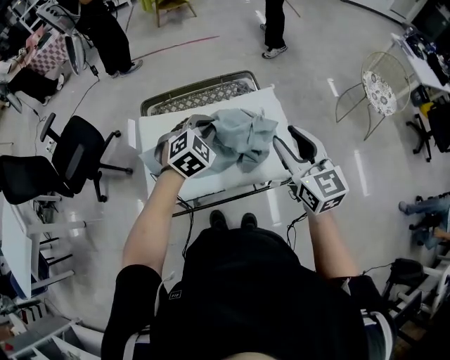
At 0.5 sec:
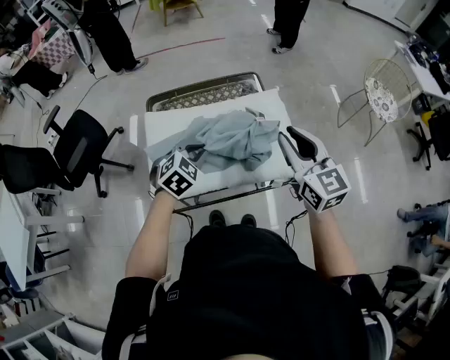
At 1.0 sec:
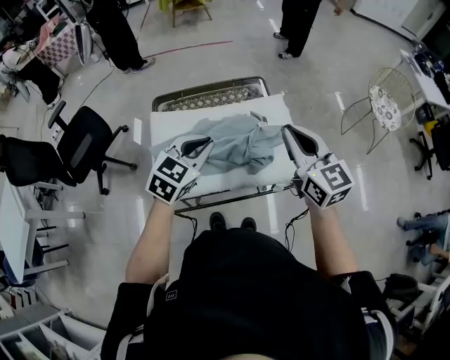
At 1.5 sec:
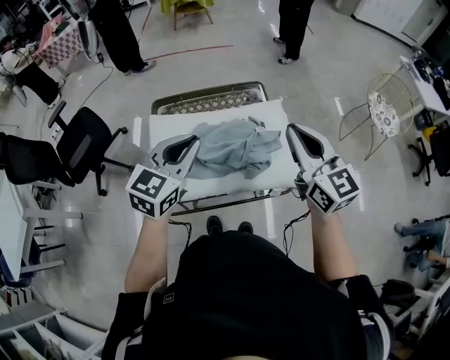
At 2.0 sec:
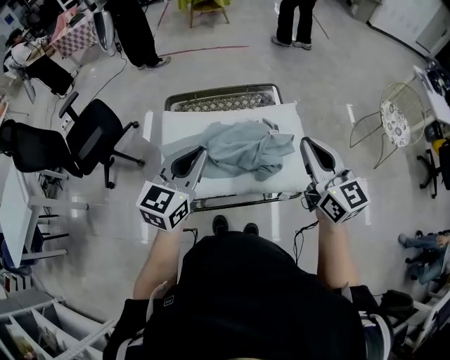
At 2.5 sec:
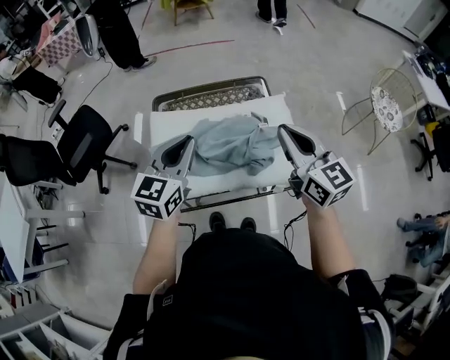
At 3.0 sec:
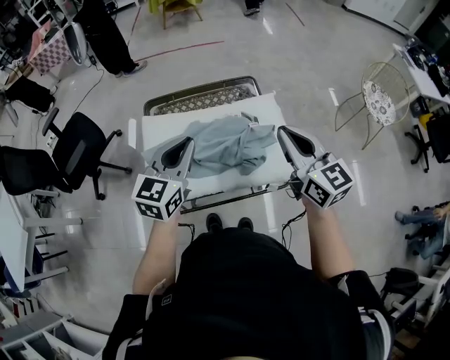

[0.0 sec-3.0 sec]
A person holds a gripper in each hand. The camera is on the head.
0.0 sec to 1.5 sec: The left gripper travels upward, backward and to the left by roughly 15 cm, and swivels about 40 degrees; the right gripper shifts roughly 5 cm upward, and closes up.
1.5 sec to 3.0 sec: The grippers make only small movements.

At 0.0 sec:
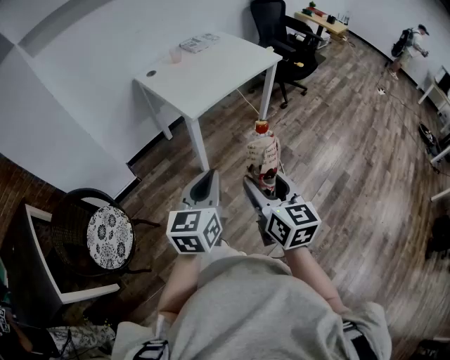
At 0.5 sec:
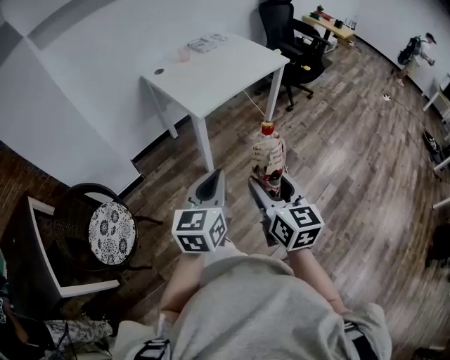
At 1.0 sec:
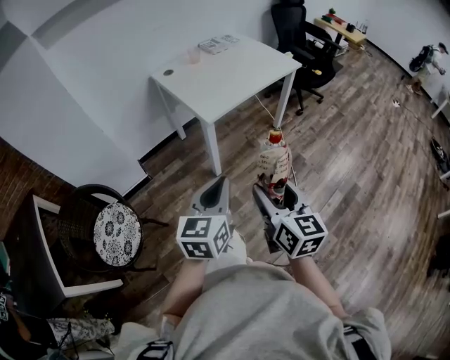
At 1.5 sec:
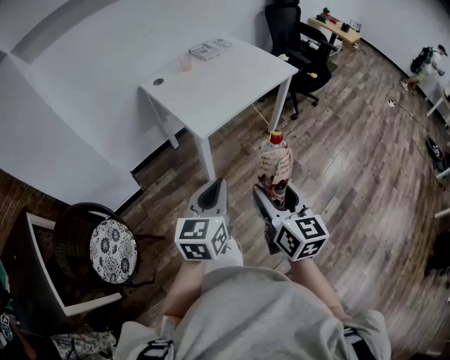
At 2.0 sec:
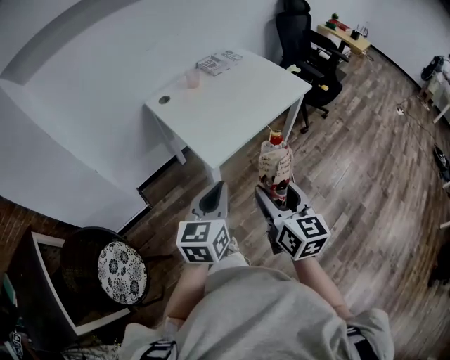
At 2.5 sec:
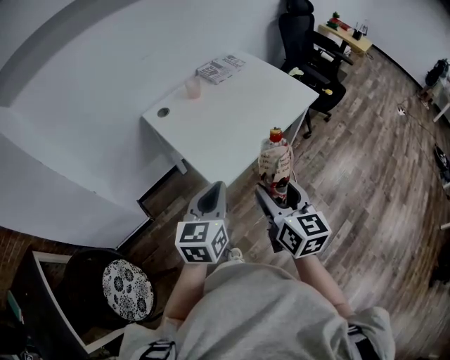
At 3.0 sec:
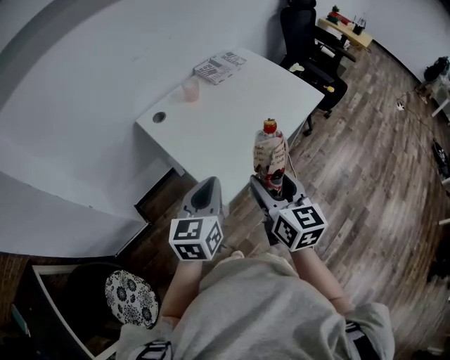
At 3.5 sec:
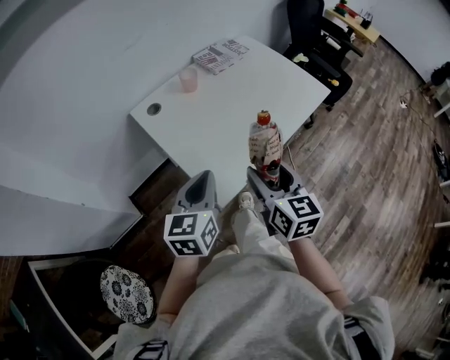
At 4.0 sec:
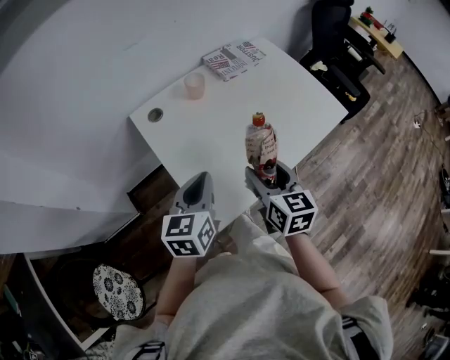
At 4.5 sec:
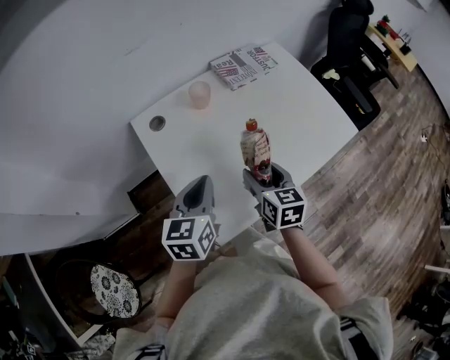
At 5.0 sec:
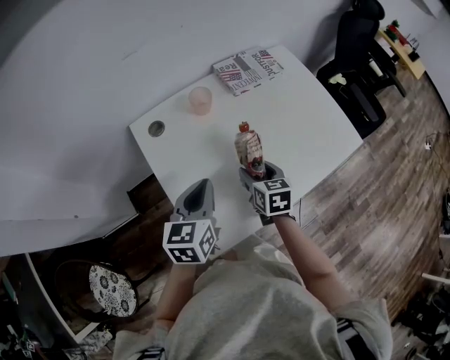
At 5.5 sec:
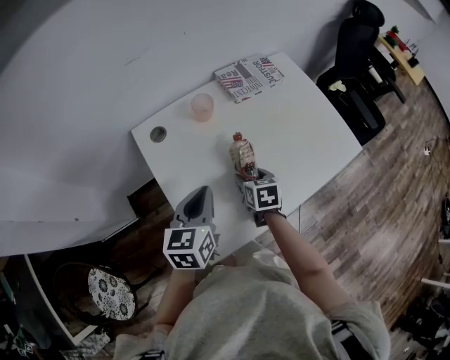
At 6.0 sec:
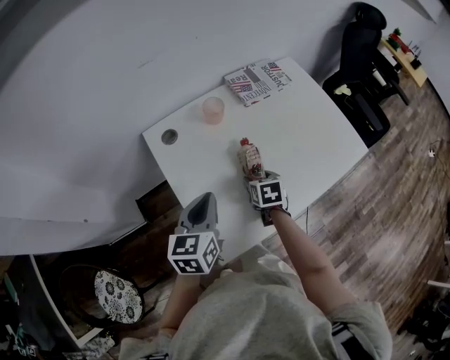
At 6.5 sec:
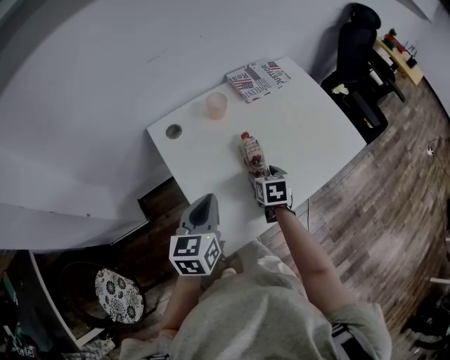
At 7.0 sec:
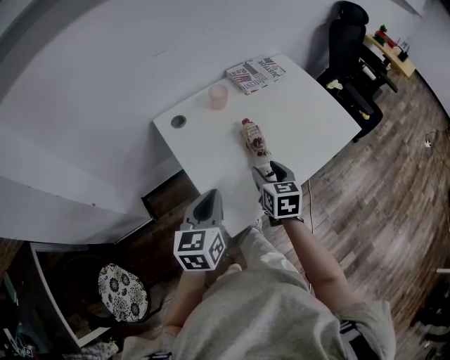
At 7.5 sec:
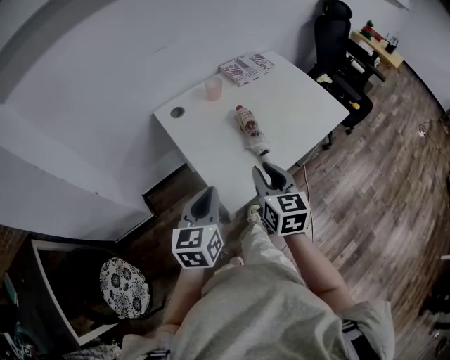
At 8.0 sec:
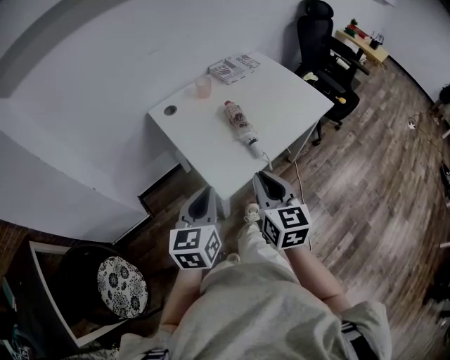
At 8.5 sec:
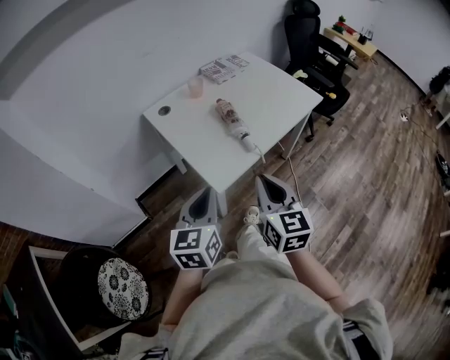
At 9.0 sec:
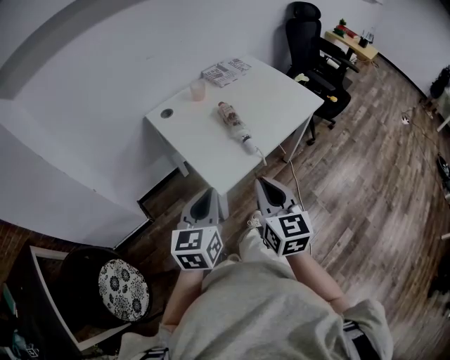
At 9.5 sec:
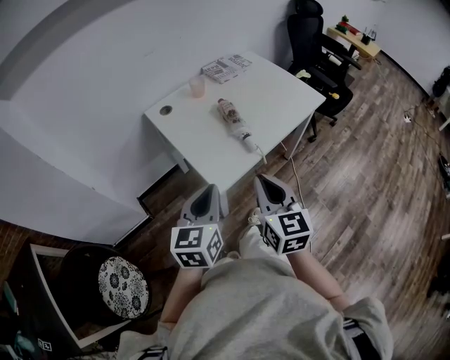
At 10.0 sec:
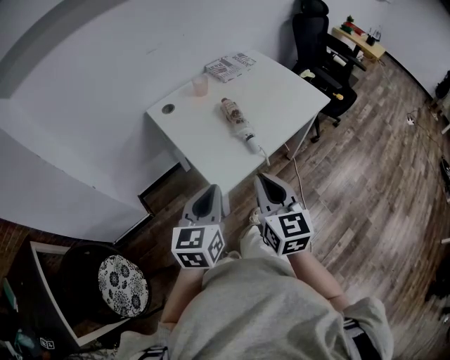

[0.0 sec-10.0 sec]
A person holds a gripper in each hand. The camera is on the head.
0.0 sec to 2.0 sec: Both grippers travel together forward, about 25 cm.
2.0 sec to 4.0 sec: Both grippers travel together forward, some 35 cm.
4.0 sec to 6.0 sec: The left gripper travels forward by roughly 10 cm. Meanwhile the right gripper heads downward and forward, covering roughly 25 cm, and tips its fingers downward by about 30 degrees.
6.0 sec to 8.0 sec: The right gripper heads backward and upward, covering some 40 cm, angles its fingers upward, by roughly 40 degrees, and closes up, while the left gripper travels backward by about 25 cm.
8.0 sec to 10.0 sec: There are only small adjustments of the grippers.

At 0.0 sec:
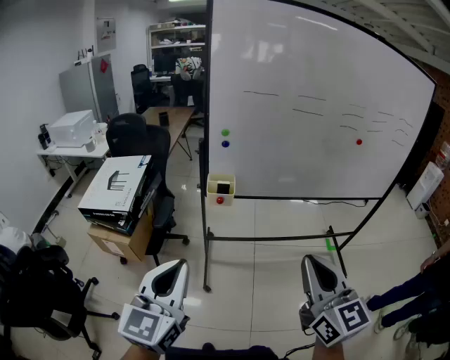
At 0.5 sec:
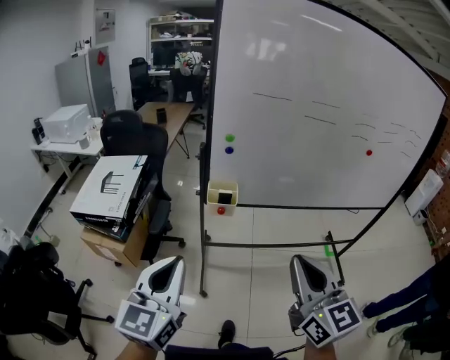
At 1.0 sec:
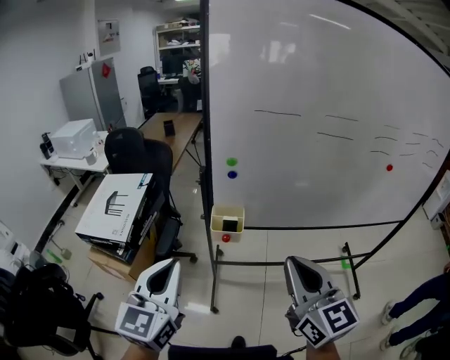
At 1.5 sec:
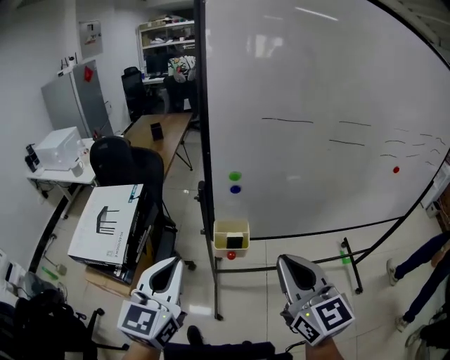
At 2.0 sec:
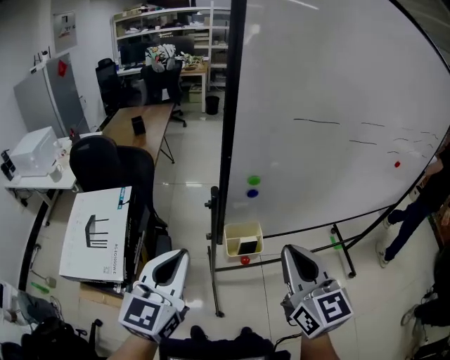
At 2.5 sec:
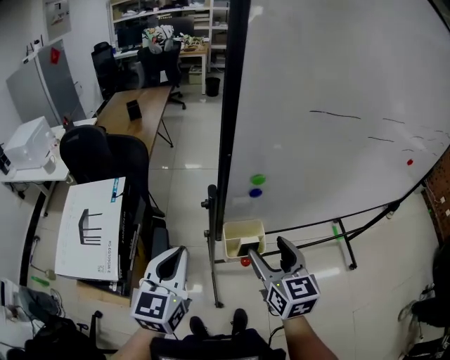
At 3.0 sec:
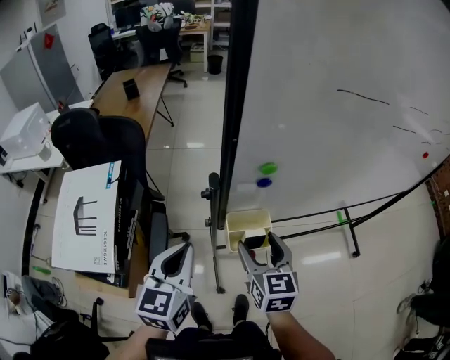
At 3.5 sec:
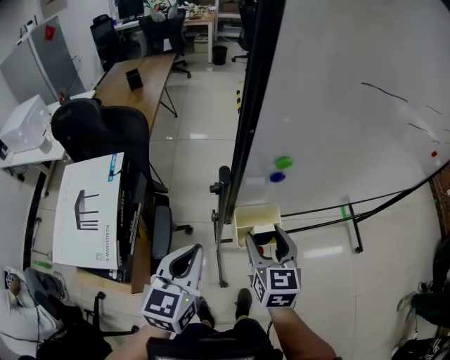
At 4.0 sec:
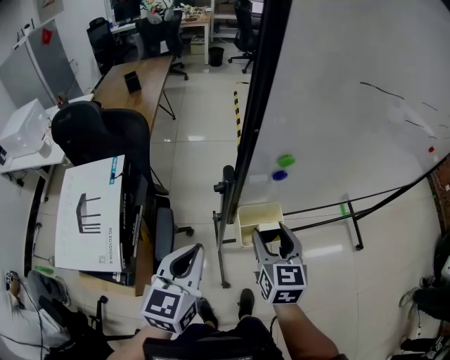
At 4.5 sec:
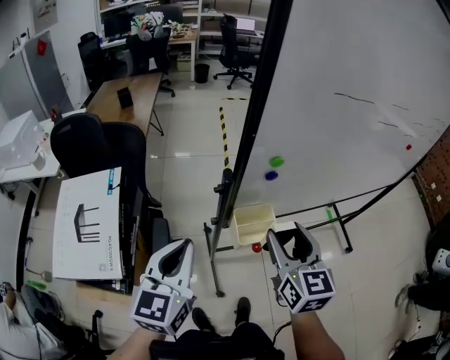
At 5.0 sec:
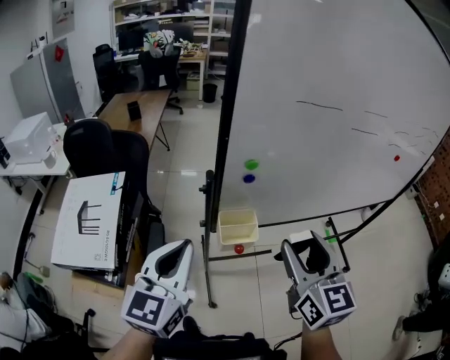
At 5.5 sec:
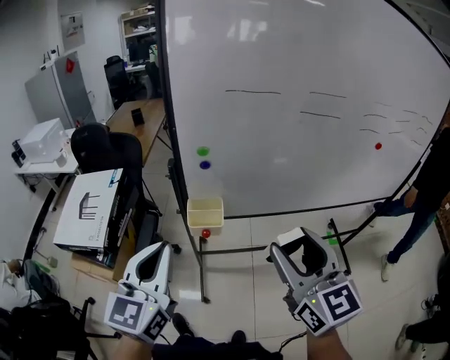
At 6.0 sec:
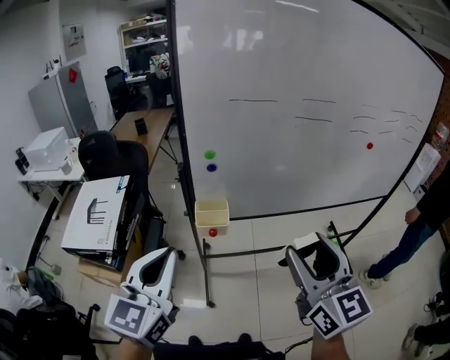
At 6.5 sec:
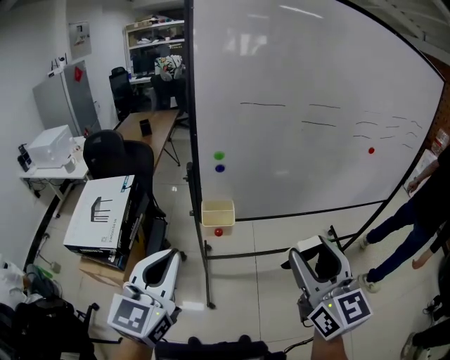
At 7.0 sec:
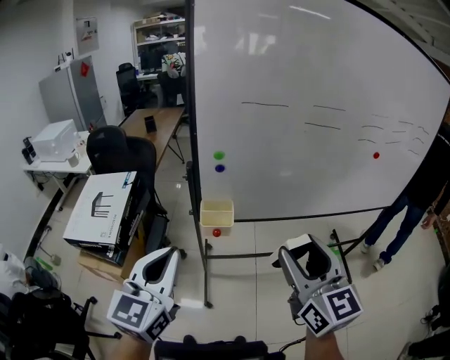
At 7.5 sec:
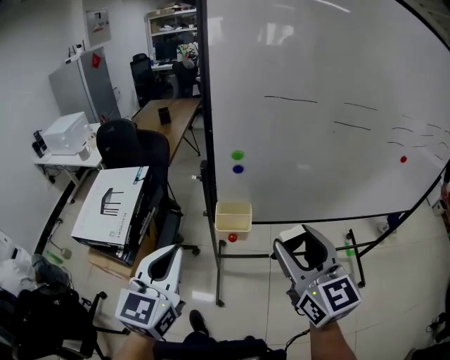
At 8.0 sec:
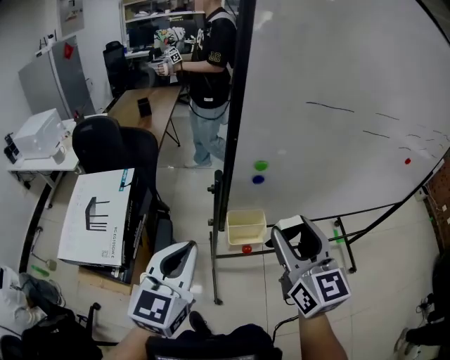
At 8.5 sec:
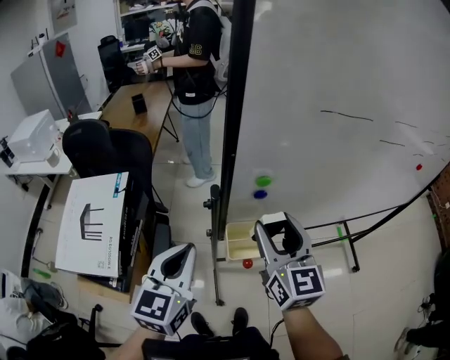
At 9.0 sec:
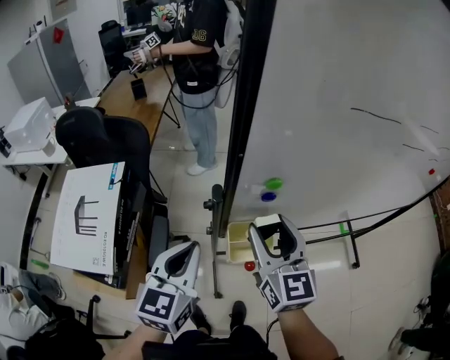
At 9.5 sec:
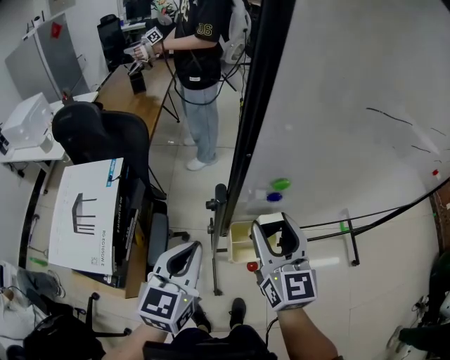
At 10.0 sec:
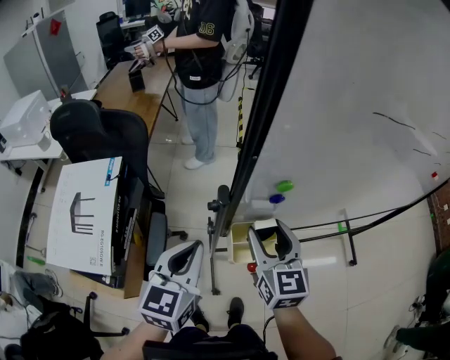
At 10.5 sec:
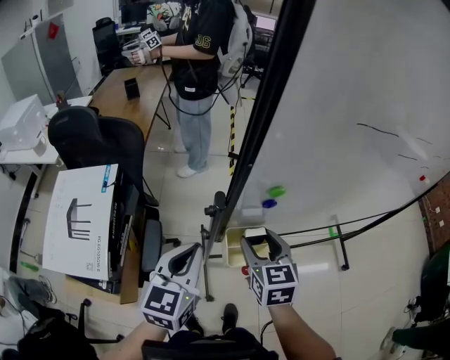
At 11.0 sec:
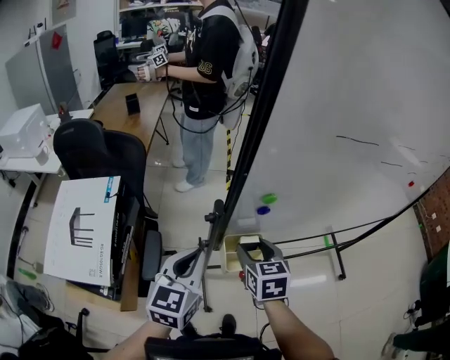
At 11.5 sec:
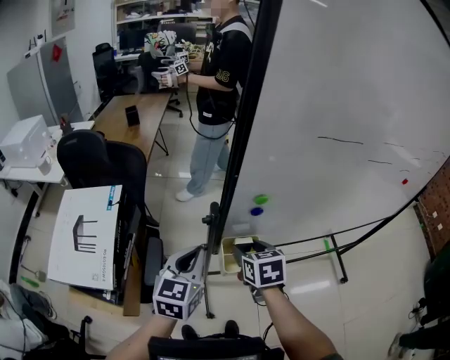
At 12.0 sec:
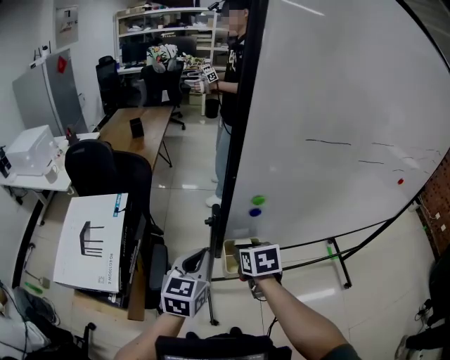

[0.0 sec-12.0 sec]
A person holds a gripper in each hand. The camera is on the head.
0.0 sec to 2.0 sec: The two grippers travel together, forward, roughly 40 cm.
2.0 sec to 4.0 sec: The right gripper travels downward and forward by approximately 25 cm, turns by approximately 20 degrees, and opens its fingers. The left gripper moves downward and forward, about 15 cm.
4.0 sec to 6.0 sec: The right gripper goes approximately 40 cm upward, backward and to the right, and rotates about 30 degrees. The left gripper is displaced backward, upward and to the right by about 35 cm, and swivels about 20 degrees.
6.0 sec to 8.0 sec: The left gripper goes roughly 20 cm forward, to the left and downward. Meanwhile the right gripper is displaced forward and to the left by roughly 25 cm.
8.0 sec to 10.0 sec: The right gripper shifts some 20 cm downward and forward. Meanwhile the left gripper is displaced forward and downward by roughly 15 cm.
10.0 sec to 12.0 sec: The right gripper goes some 5 cm downward, and points its fingers some 40 degrees further downward.

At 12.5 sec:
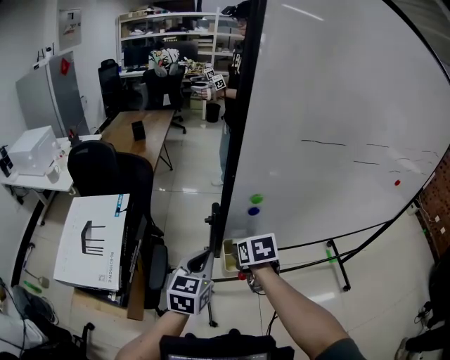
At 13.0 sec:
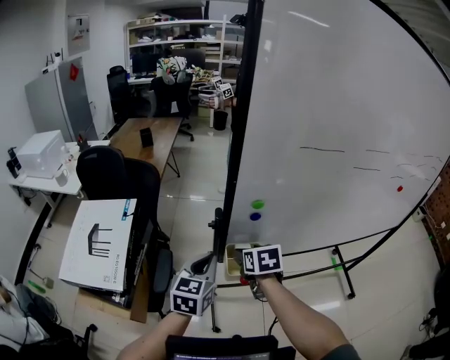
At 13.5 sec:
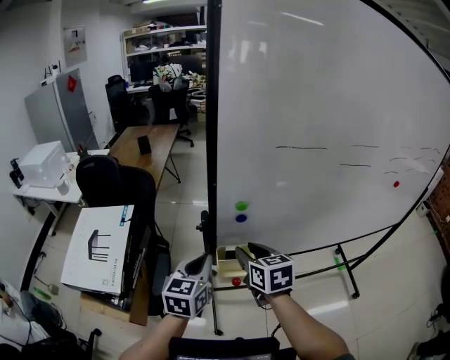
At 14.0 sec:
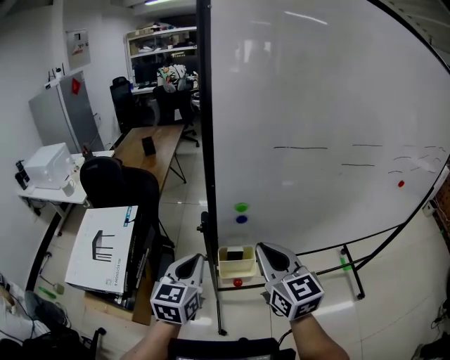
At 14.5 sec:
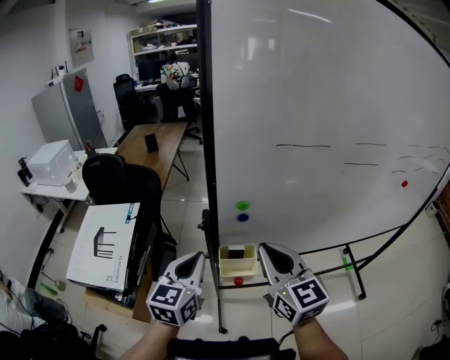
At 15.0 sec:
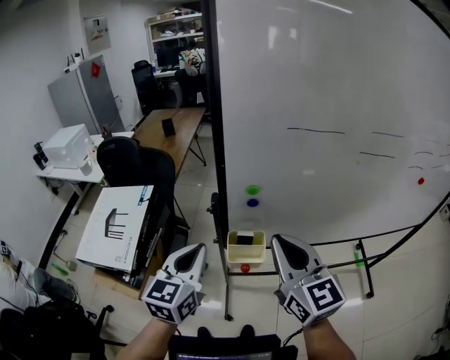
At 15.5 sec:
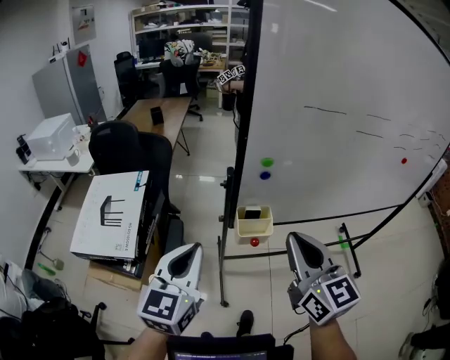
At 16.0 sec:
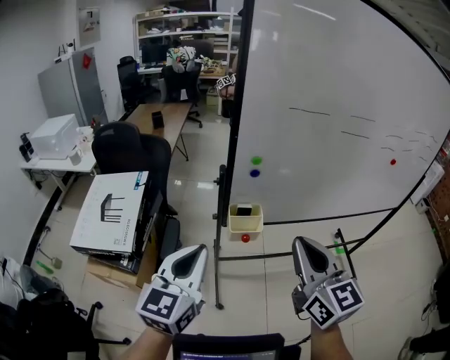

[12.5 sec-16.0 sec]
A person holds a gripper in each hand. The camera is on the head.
12.5 sec to 14.5 sec: The left gripper heads upward, covering approximately 5 cm. The right gripper shifts roughly 25 cm upward and backward, tips its fingers upward by roughly 50 degrees, and closes its fingers.
14.5 sec to 16.0 sec: Both grippers move backward, some 15 cm.
